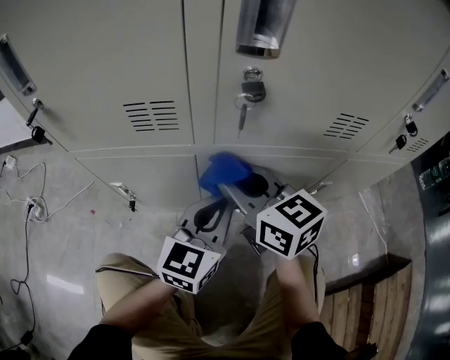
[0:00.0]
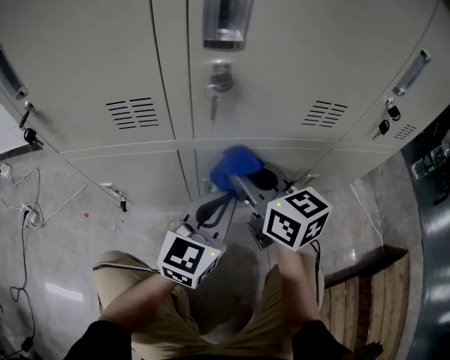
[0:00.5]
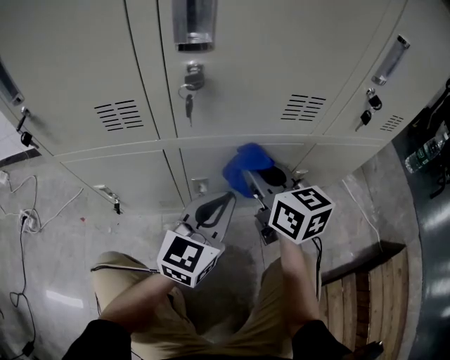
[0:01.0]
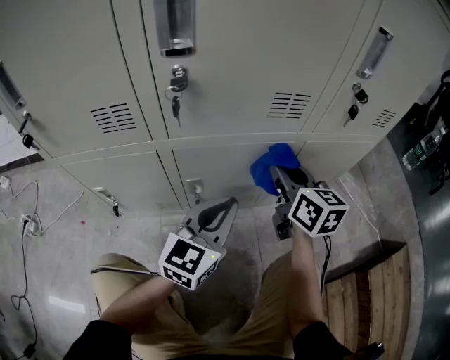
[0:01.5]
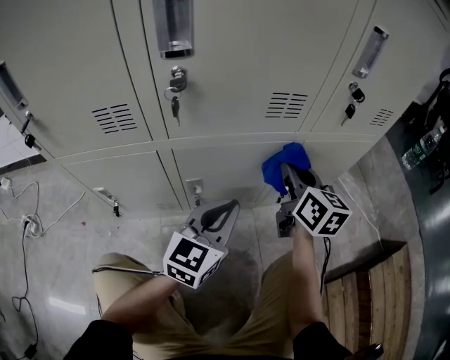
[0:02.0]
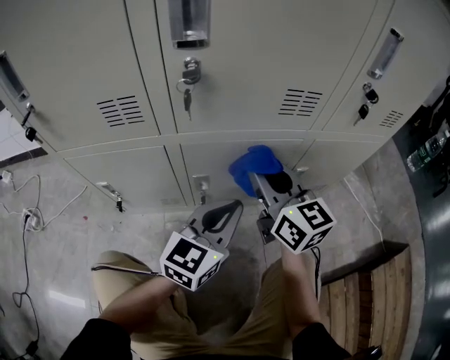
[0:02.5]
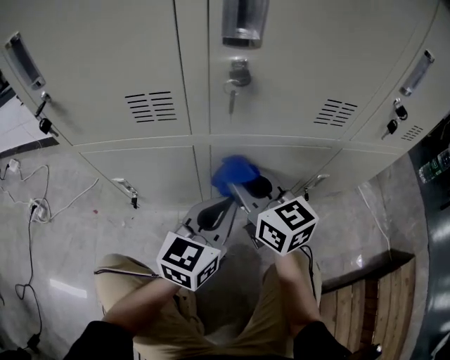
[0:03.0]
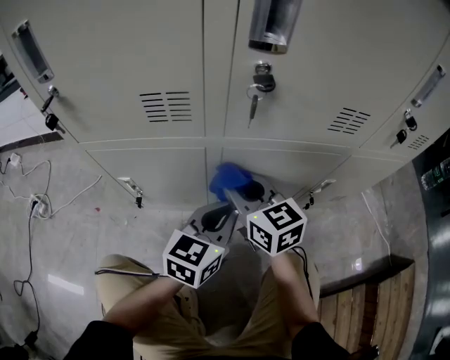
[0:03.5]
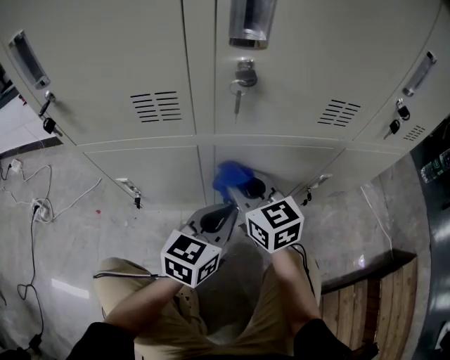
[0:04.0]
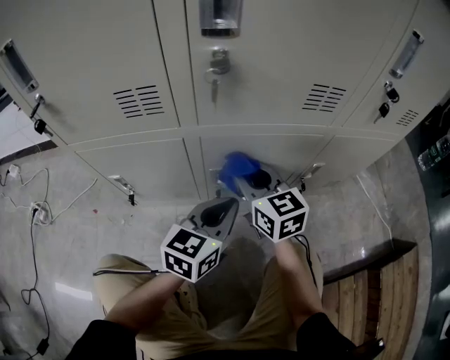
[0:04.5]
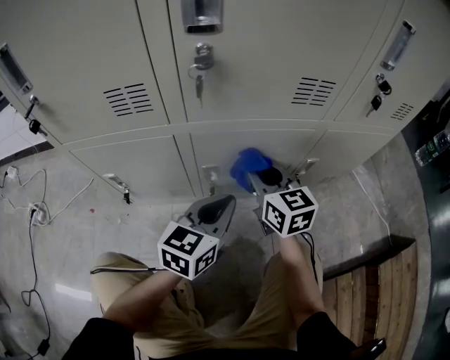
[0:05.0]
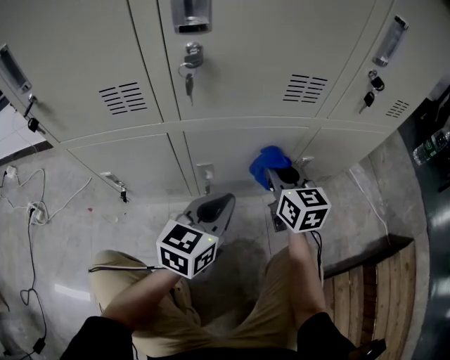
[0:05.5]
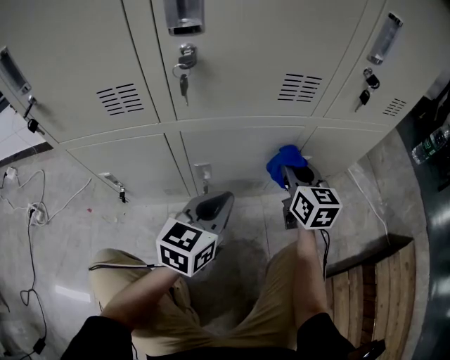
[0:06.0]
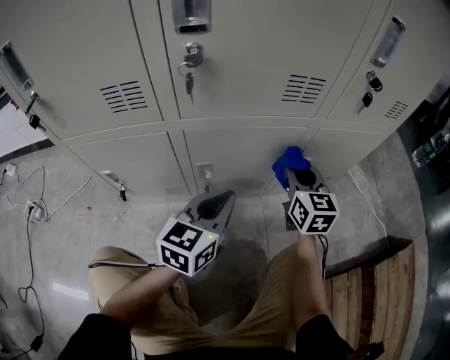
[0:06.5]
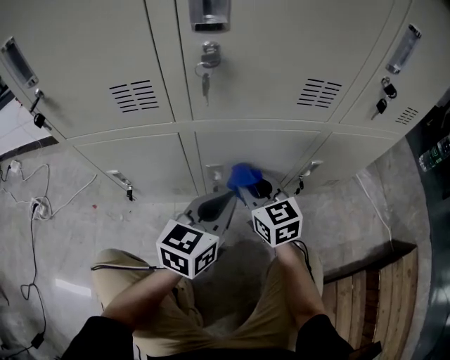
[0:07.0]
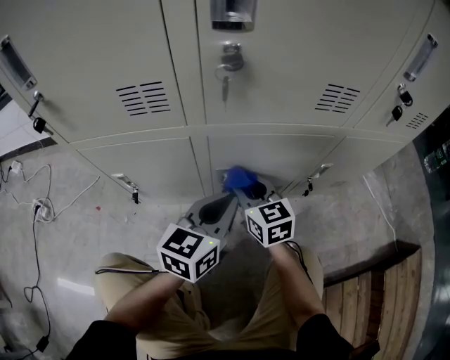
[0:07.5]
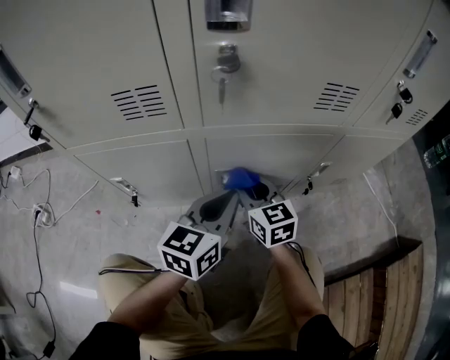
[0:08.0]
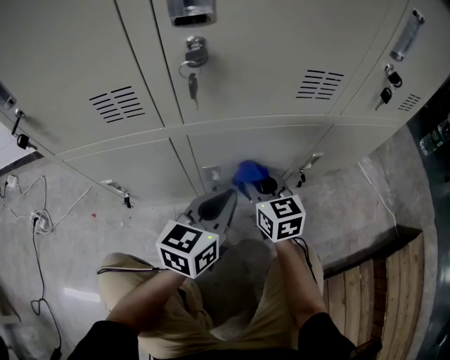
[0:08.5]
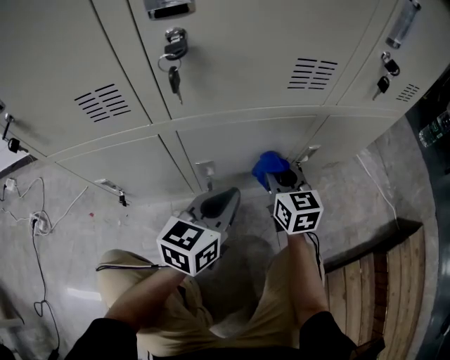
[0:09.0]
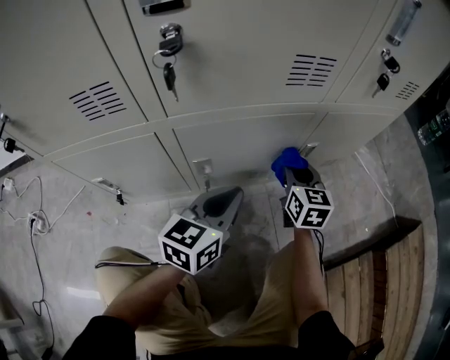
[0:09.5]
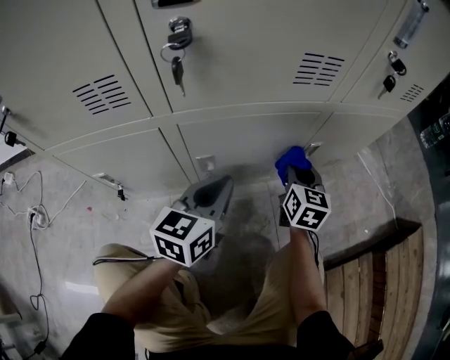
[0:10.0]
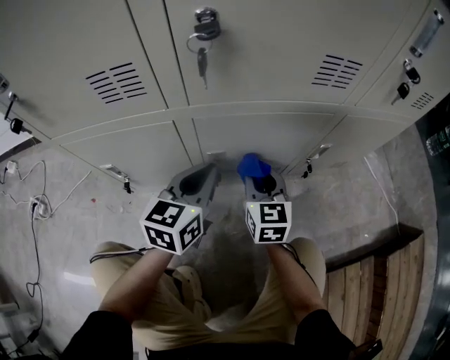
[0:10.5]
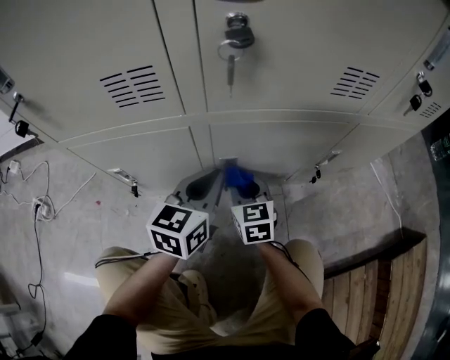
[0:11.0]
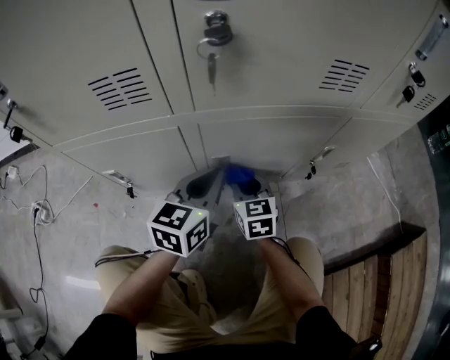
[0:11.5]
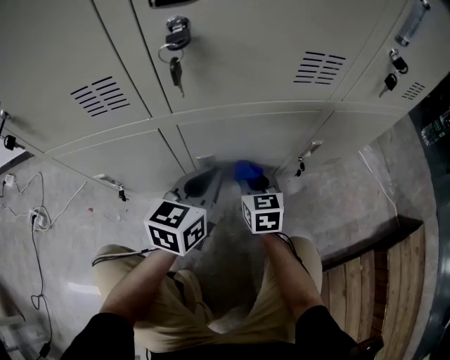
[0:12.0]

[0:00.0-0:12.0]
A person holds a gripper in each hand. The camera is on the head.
0:00.0 to 0:02.0: The left gripper is displaced to the right by some 10 cm. Meanwhile the right gripper heads to the right, covering some 25 cm, and rotates approximately 40 degrees.
0:02.0 to 0:04.0: The right gripper shifts some 25 cm to the left, and rotates approximately 30 degrees. The left gripper heads to the left, covering some 10 cm.
0:04.0 to 0:06.0: The left gripper shifts approximately 5 cm to the right; the right gripper shifts approximately 20 cm to the right, and swivels approximately 30 degrees.
0:06.0 to 0:08.0: The left gripper ends up approximately 5 cm from where it was. Meanwhile the right gripper travels to the left by some 20 cm.
0:08.0 to 0:10.0: The right gripper shifts about 20 cm to the right, and turns by some 30 degrees.
0:10.0 to 0:12.0: The right gripper heads to the left and downward, covering about 15 cm.

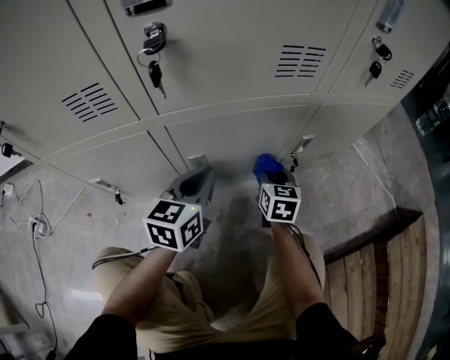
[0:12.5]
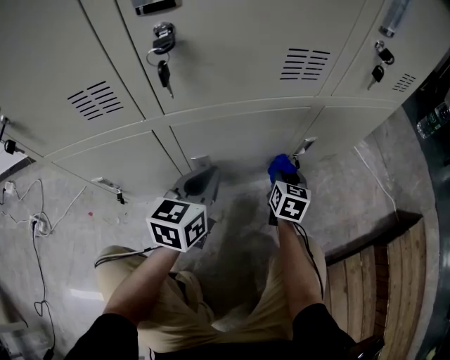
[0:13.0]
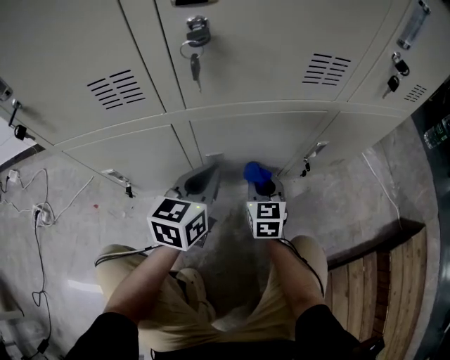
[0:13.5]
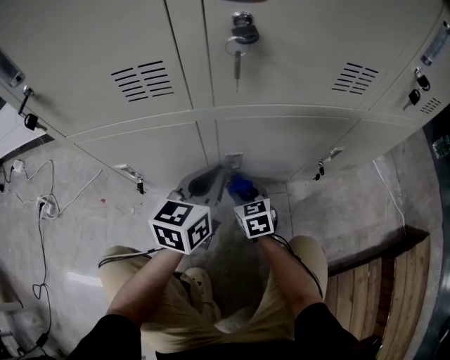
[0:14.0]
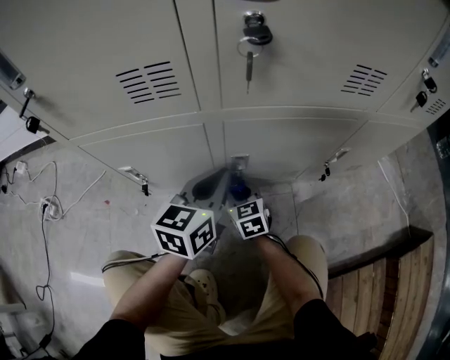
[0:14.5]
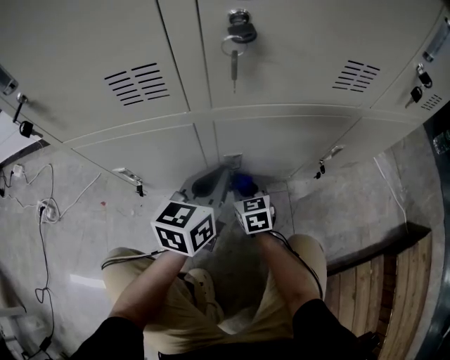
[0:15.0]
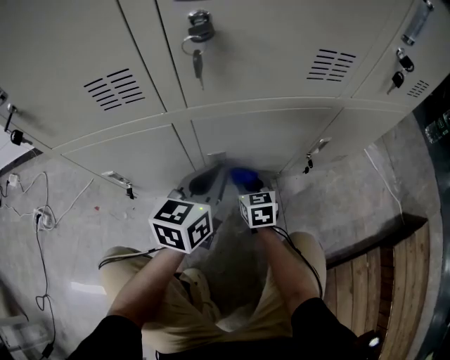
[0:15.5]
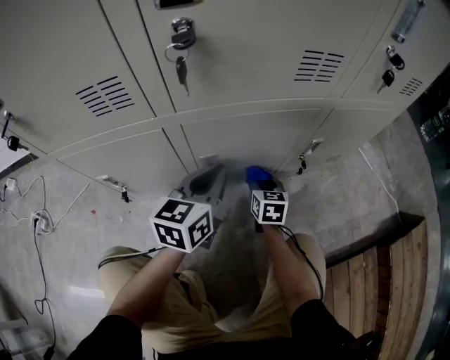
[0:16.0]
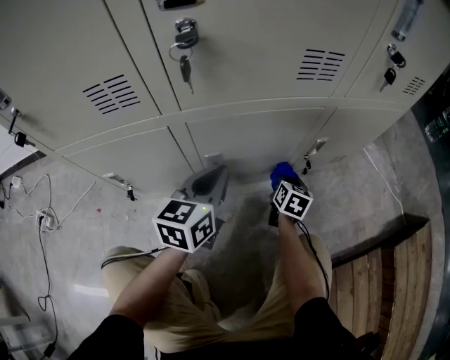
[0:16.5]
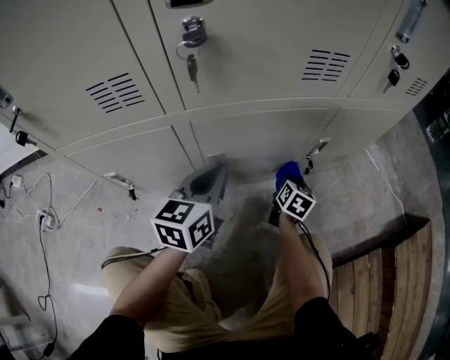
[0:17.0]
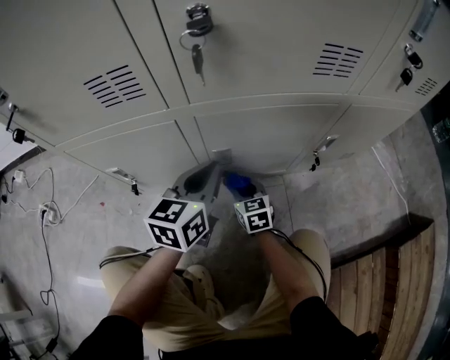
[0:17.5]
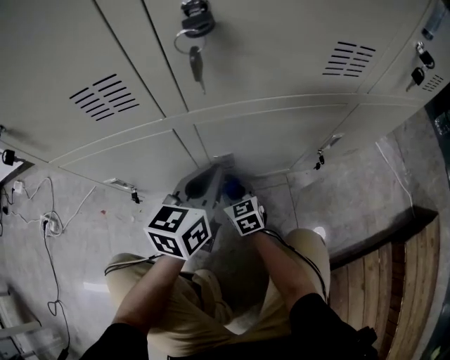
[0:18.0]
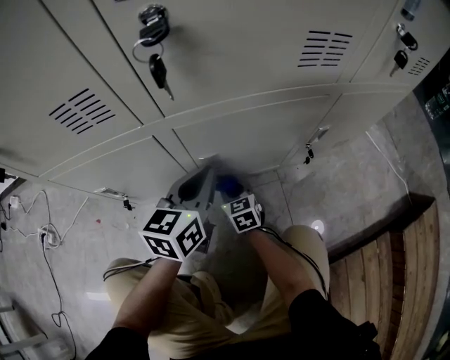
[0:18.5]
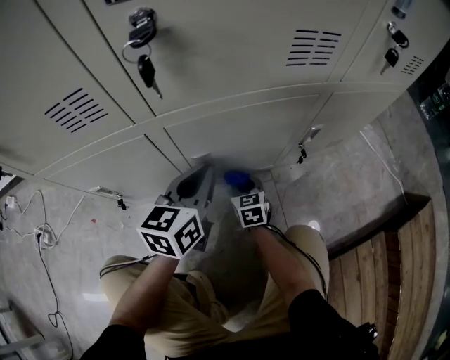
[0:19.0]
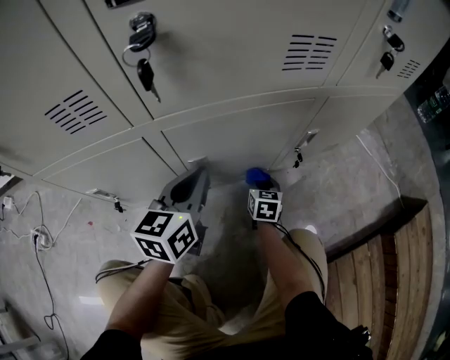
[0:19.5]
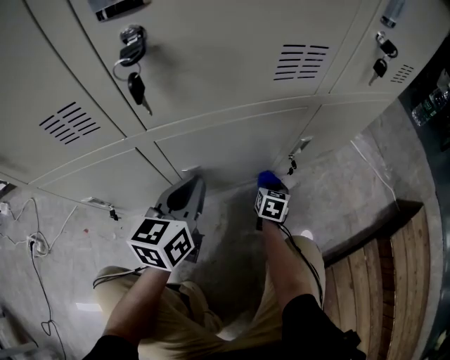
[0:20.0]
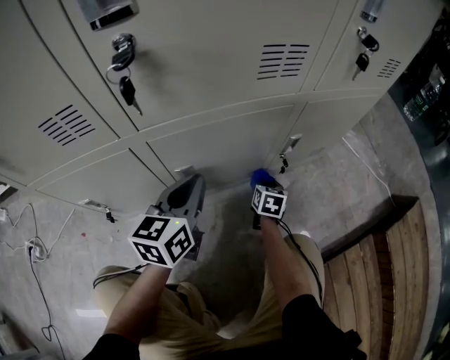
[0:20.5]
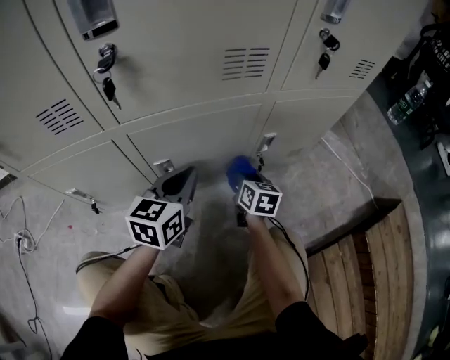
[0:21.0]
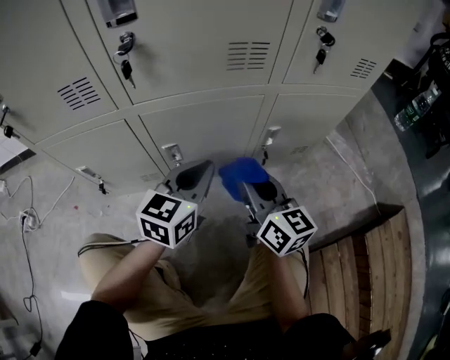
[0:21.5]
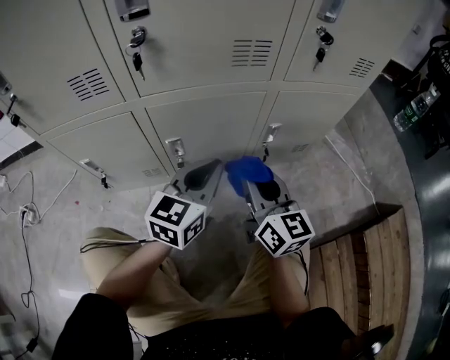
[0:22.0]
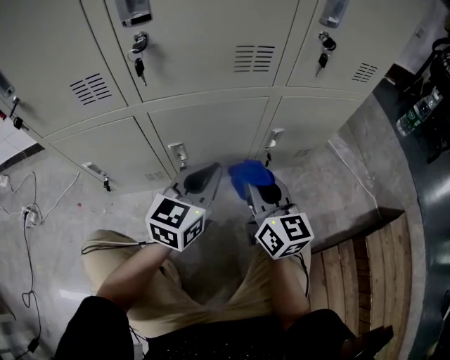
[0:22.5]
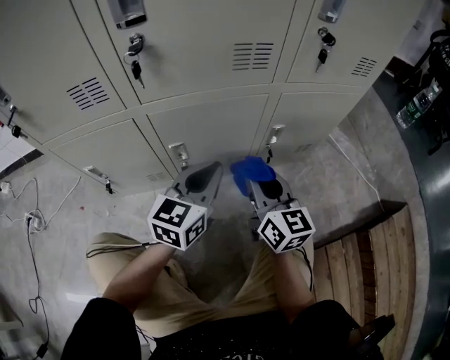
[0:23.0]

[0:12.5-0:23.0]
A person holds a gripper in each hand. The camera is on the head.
0:12.5 to 0:14.5: The left gripper travels to the left by about 5 cm; the right gripper travels to the left by roughly 20 cm, and changes its angle by some 30 degrees.
0:14.5 to 0:16.5: The left gripper travels to the right by about 5 cm, while the right gripper travels to the right by some 25 cm, and turns by about 50 degrees.
0:16.5 to 0:19.0: The right gripper goes approximately 15 cm to the left, and turns by some 30 degrees.
0:19.0 to 0:21.0: The right gripper heads to the right and upward, covering about 15 cm, and turns by about 30 degrees, while the left gripper heads to the right, covering roughly 5 cm.
0:21.0 to 0:23.0: The left gripper moves some 10 cm; the right gripper goes about 20 cm upward and backward, and rotates about 30 degrees.

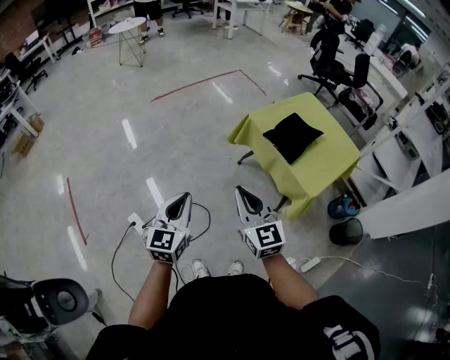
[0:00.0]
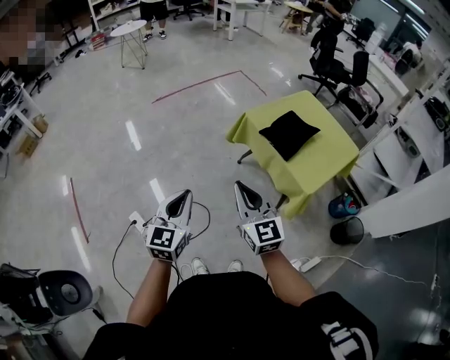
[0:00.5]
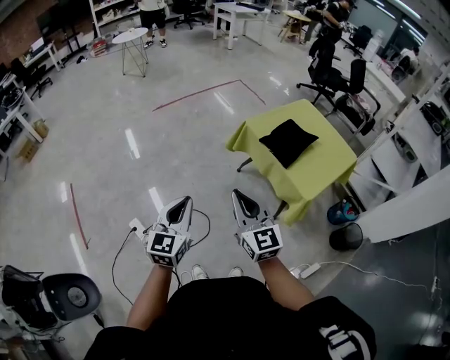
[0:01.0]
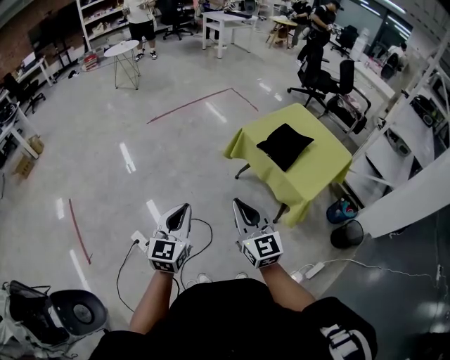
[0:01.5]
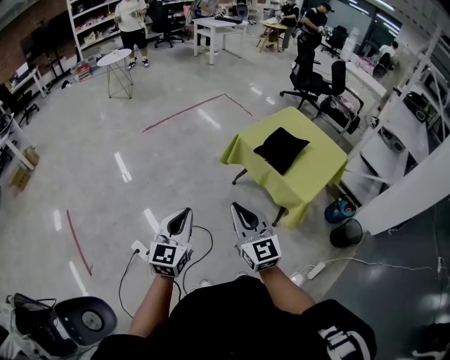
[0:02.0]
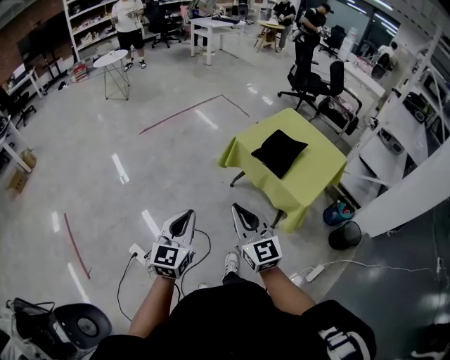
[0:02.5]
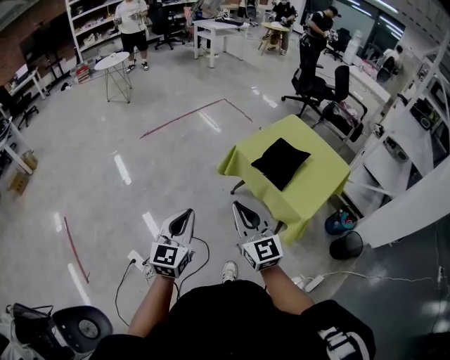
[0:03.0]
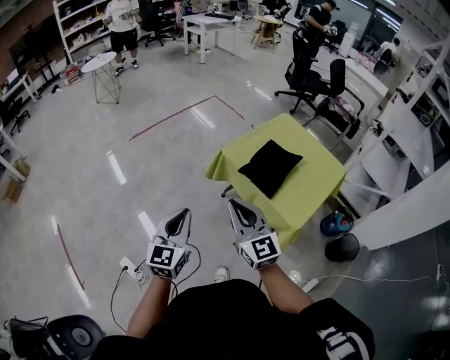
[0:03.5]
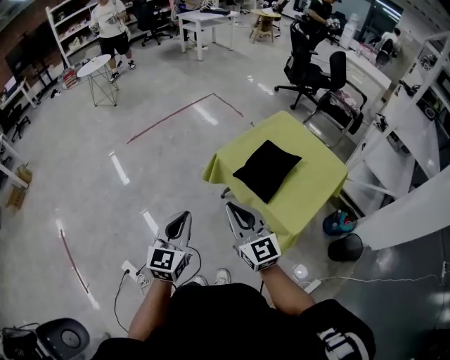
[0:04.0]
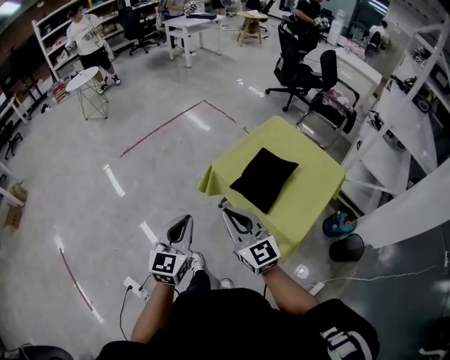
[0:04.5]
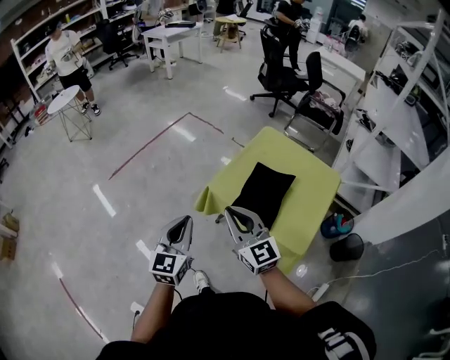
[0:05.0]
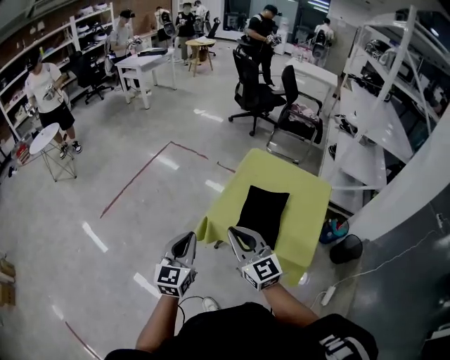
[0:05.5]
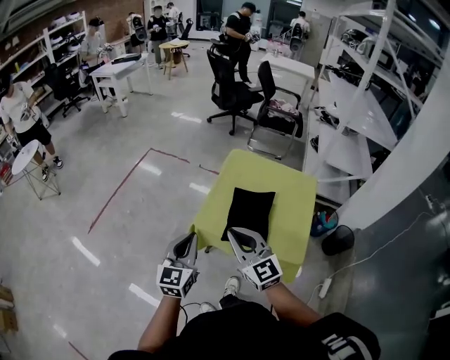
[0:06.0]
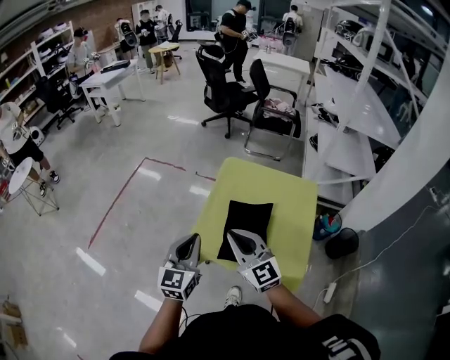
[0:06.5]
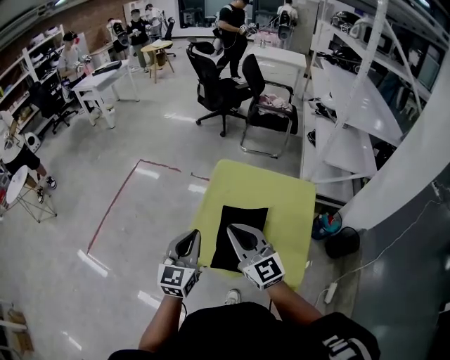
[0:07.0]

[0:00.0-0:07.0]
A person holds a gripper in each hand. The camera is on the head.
0:00.0 to 0:02.0: The left gripper moves upward, about 5 cm; the right gripper changes place by approximately 5 cm.
0:02.0 to 0:03.5: The two grippers go approximately 20 cm forward and to the right.
0:03.5 to 0:05.0: Both grippers travel together forward, roughly 20 cm.
0:05.0 to 0:07.0: The grippers both shift forward and to the right by about 25 cm. The left gripper rotates roughly 20 degrees.
